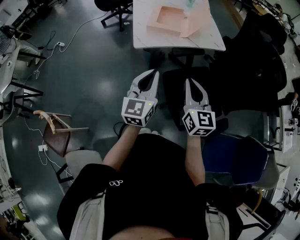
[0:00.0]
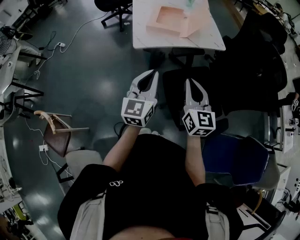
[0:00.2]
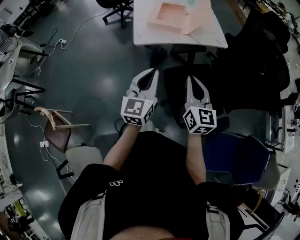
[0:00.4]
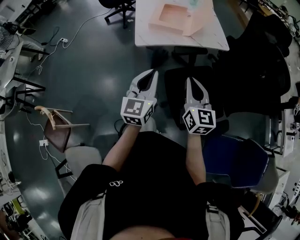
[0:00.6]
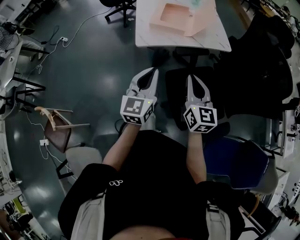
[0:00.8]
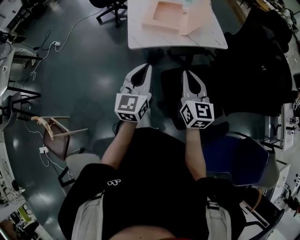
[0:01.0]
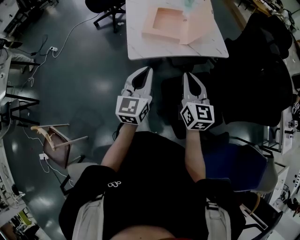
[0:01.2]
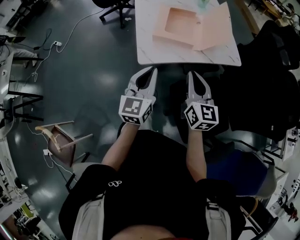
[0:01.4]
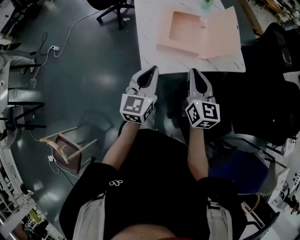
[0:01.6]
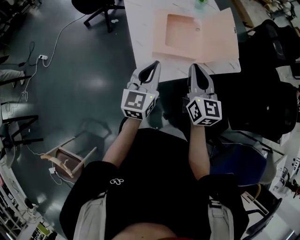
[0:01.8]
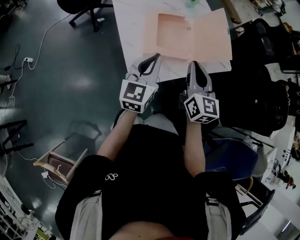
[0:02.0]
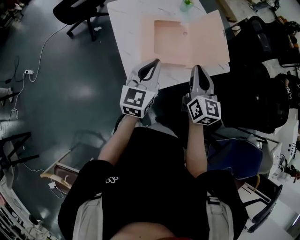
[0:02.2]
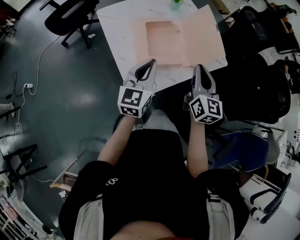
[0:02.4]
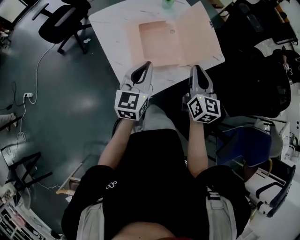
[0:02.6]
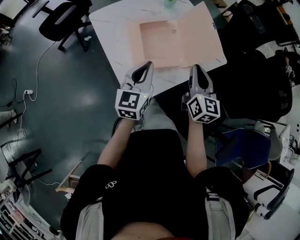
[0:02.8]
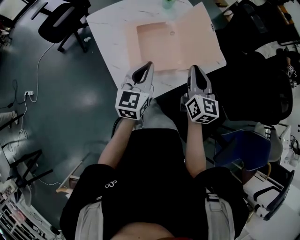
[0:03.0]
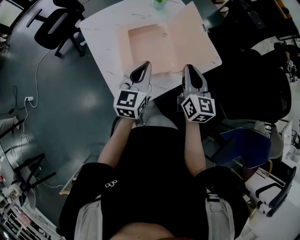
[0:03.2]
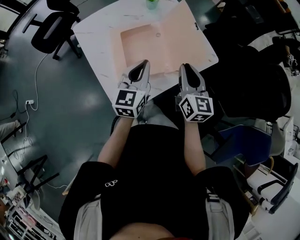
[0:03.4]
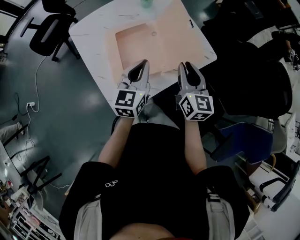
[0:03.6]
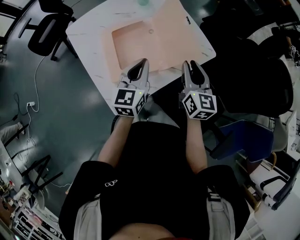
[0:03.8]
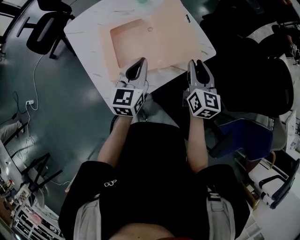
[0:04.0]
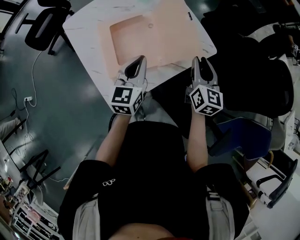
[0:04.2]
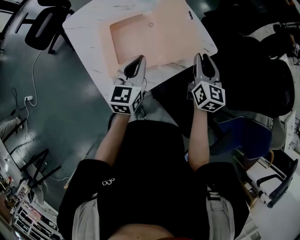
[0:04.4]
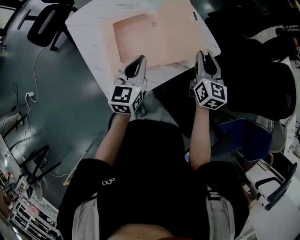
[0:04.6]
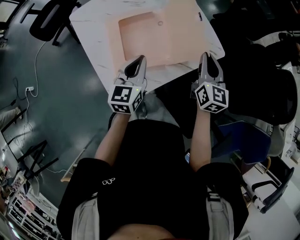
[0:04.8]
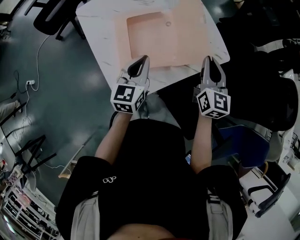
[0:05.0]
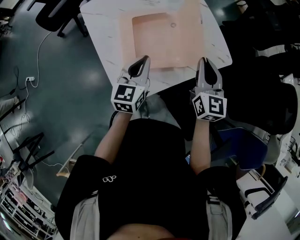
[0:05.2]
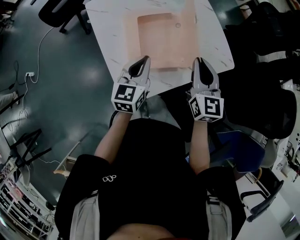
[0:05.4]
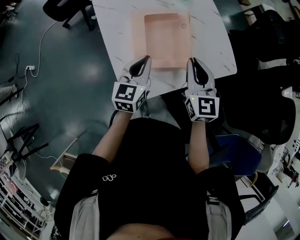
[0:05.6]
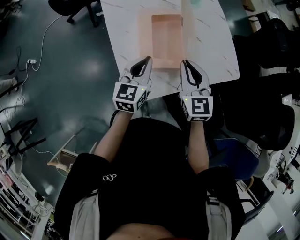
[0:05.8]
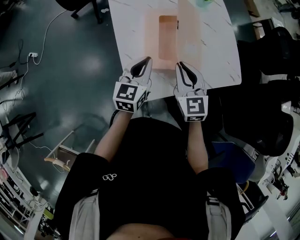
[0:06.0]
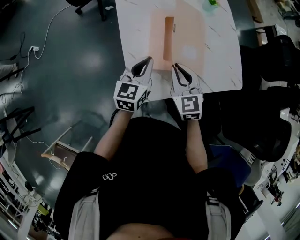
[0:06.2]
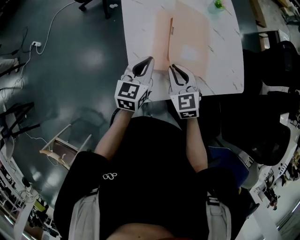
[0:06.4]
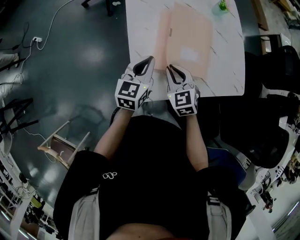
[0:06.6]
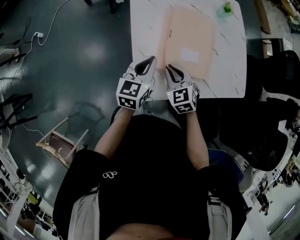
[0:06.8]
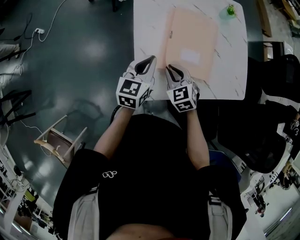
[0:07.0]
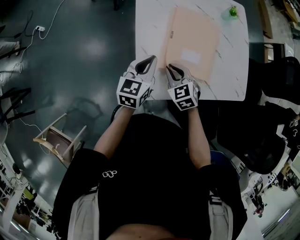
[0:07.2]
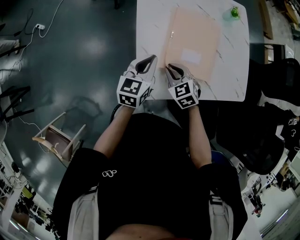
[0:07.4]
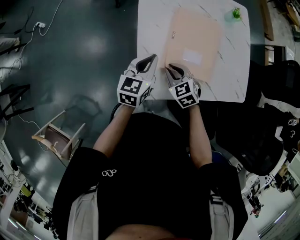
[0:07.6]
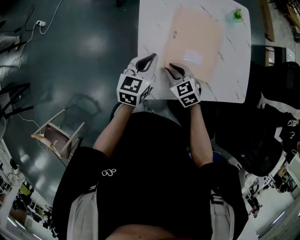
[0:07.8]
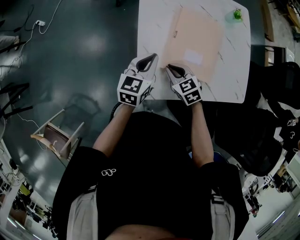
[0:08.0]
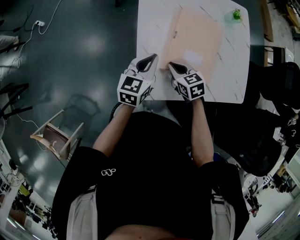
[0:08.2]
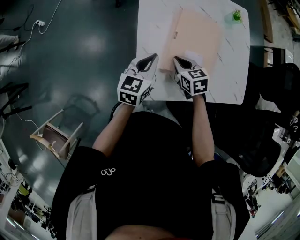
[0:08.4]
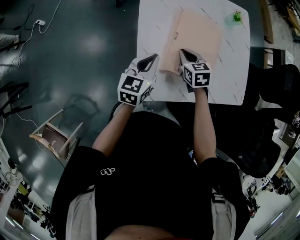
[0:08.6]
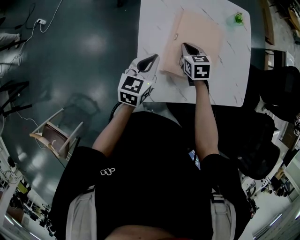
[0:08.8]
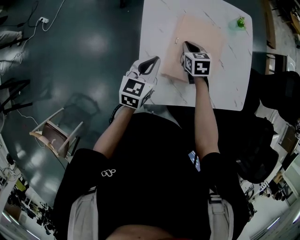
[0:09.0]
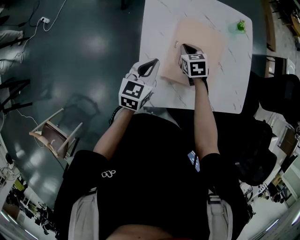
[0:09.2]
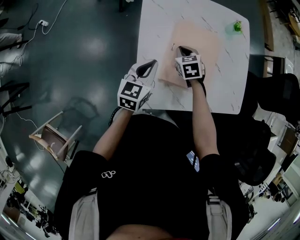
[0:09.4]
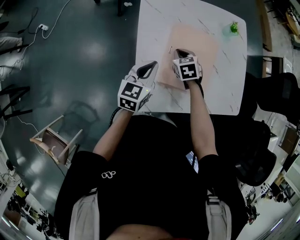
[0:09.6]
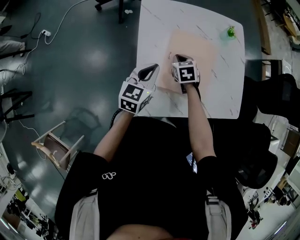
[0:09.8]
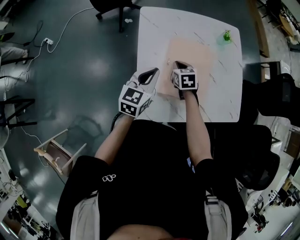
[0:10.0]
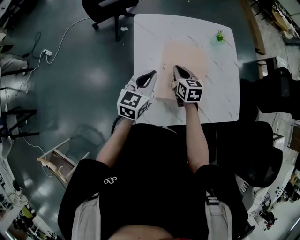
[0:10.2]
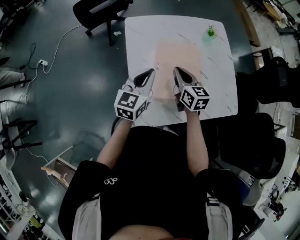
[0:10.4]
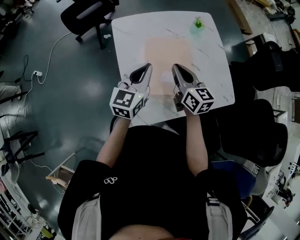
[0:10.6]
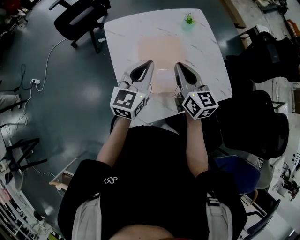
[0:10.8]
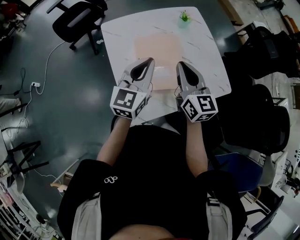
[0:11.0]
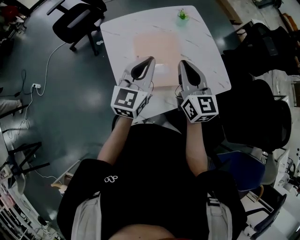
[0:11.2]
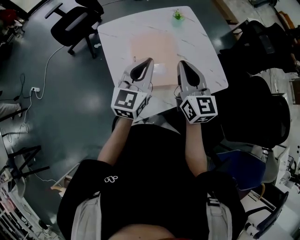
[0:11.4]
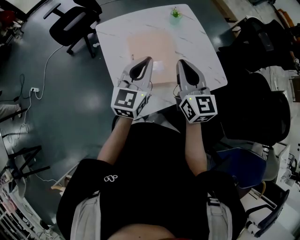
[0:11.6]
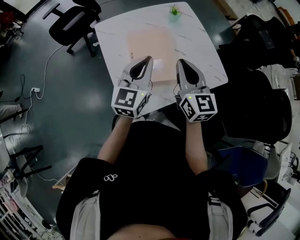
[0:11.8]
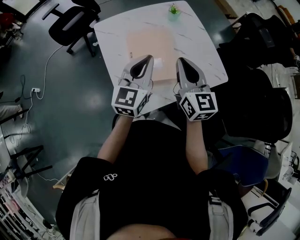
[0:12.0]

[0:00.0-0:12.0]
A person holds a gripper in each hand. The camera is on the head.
0.0 to 1.6 s: Both grippers move forward, about 25 cm.
1.6 to 3.0 s: The two grippers go approximately 15 cm forward. The right gripper rotates some 20 degrees.
3.0 to 4.4 s: The left gripper heads to the right and forward, covering about 10 cm. The right gripper moves to the right and forward, some 15 cm.
4.4 to 6.0 s: The right gripper shifts approximately 25 cm to the left, and changes its angle by approximately 40 degrees, while the left gripper heads to the left, covering approximately 15 cm.
6.0 to 7.6 s: The left gripper heads to the left, covering some 5 cm, while the right gripper heads downward and to the left, covering some 15 cm, and swivels some 40 degrees.
7.6 to 9.0 s: The right gripper goes about 15 cm forward and to the right, and changes its angle by approximately 30 degrees.
9.0 to 10.4 s: Both grippers move upward, approximately 10 cm. The right gripper turns by approximately 30 degrees.
10.4 to 12.0 s: The right gripper goes some 20 cm upward, to the right and backward, and turns by roughly 30 degrees, while the left gripper shifts some 15 cm to the right and upward.

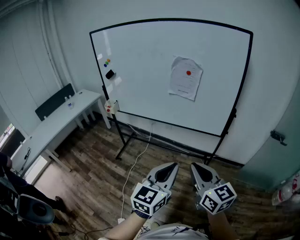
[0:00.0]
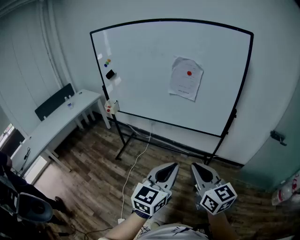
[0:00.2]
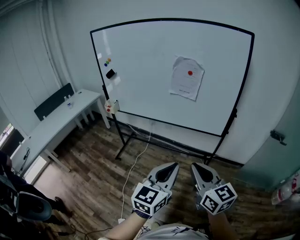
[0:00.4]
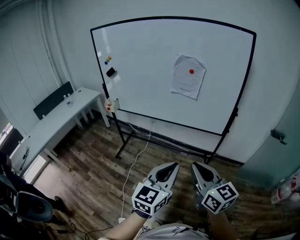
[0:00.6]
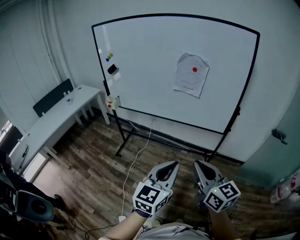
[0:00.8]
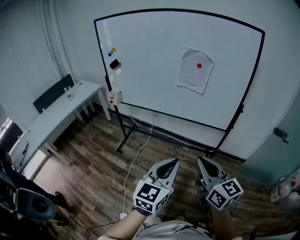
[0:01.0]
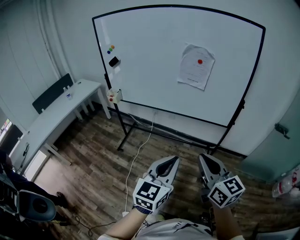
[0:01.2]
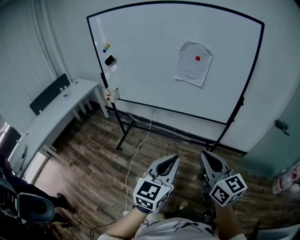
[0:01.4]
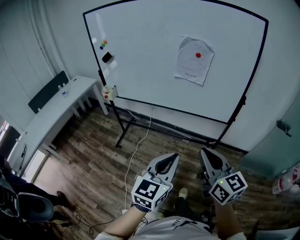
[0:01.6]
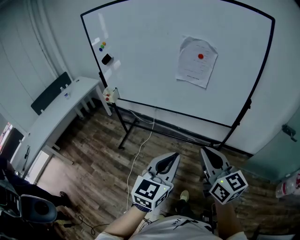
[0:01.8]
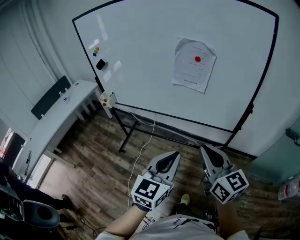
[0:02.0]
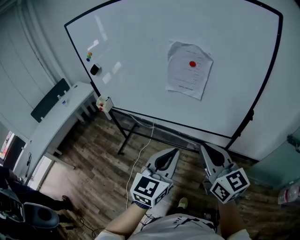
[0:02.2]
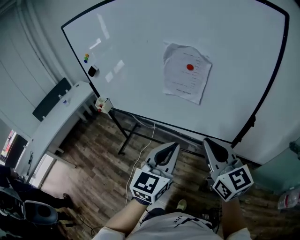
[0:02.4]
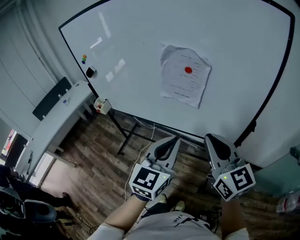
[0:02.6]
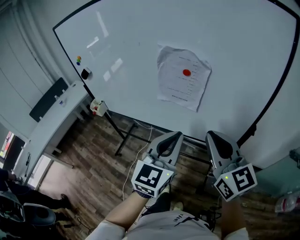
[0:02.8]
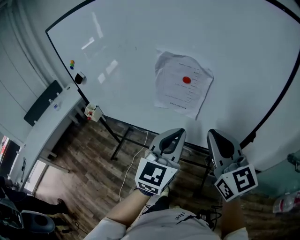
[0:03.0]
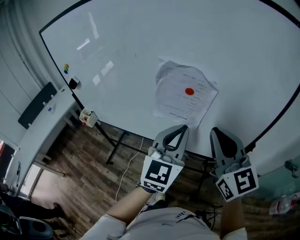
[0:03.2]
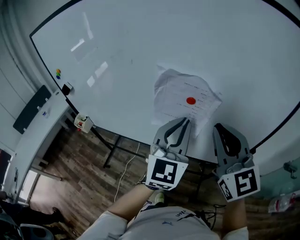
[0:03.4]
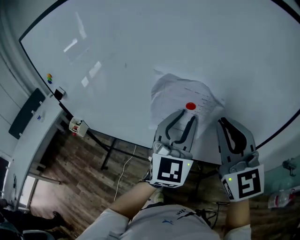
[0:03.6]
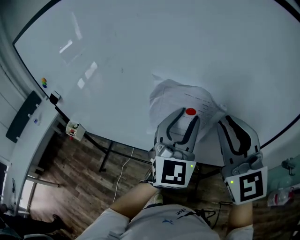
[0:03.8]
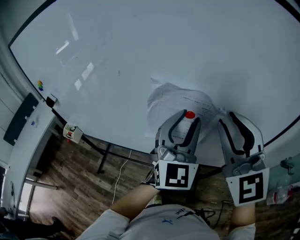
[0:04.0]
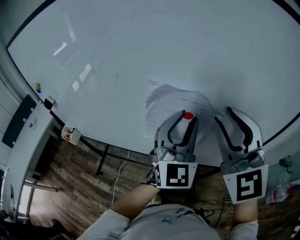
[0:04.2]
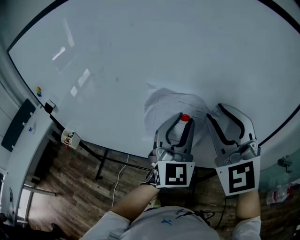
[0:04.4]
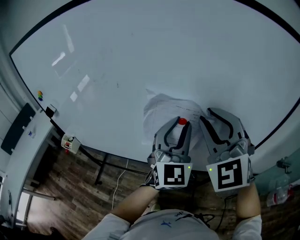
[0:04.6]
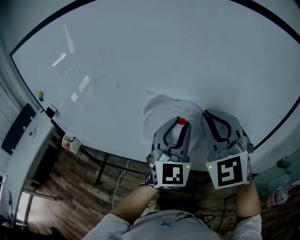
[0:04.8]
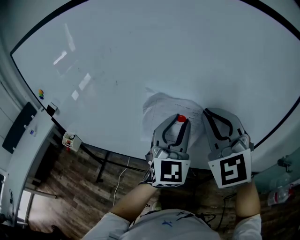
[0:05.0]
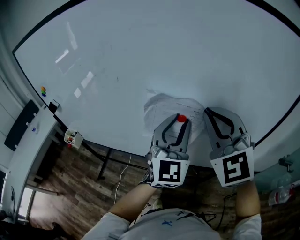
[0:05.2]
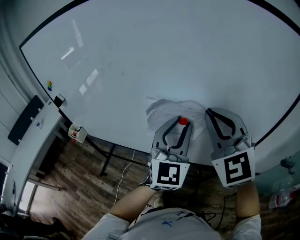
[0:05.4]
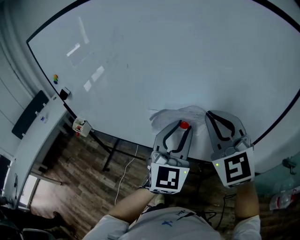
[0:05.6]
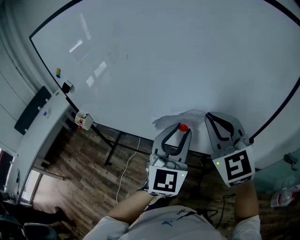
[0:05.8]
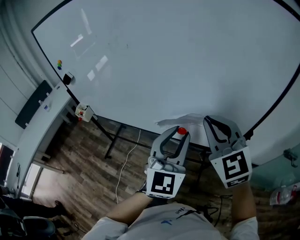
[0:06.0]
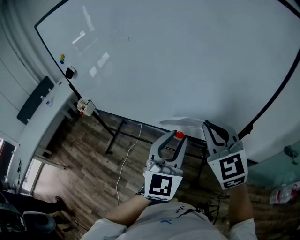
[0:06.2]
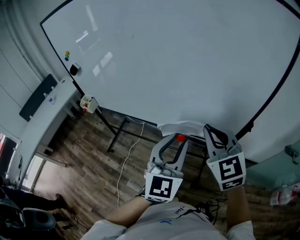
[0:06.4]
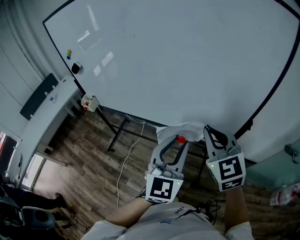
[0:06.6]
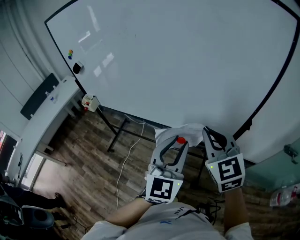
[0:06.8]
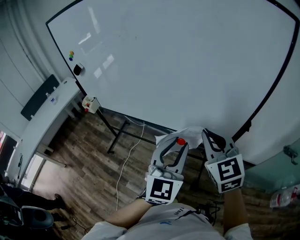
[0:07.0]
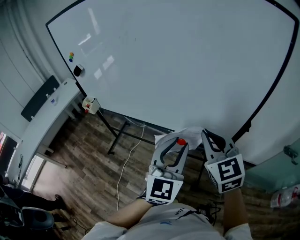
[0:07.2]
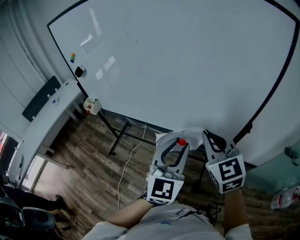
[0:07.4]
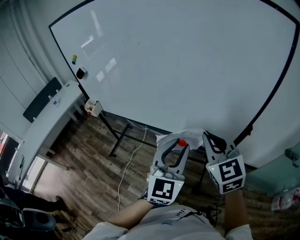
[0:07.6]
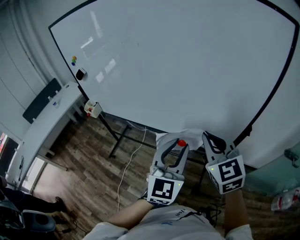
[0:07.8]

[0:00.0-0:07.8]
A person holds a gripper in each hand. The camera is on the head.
0.0 to 1.6 s: The left gripper goes roughly 5 cm to the left; the right gripper ends up about 5 cm from where it was.
1.6 to 3.2 s: Both grippers travel together forward, some 40 cm. The right gripper changes its angle by roughly 20 degrees.
3.2 to 4.6 s: The left gripper is displaced forward by about 10 cm, and opens up. Meanwhile the right gripper travels forward and upward by some 10 cm, rolls counterclockwise, seen from behind, by approximately 40 degrees, and opens its fingers.
4.6 to 6.2 s: The left gripper is displaced backward by approximately 20 cm, while the right gripper moves backward and downward, approximately 15 cm, rotates about 30 degrees, and closes.
6.2 to 7.8 s: There are only small adjustments of the grippers.

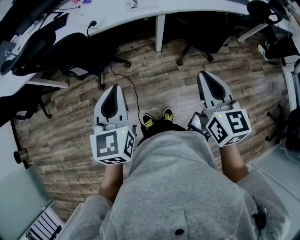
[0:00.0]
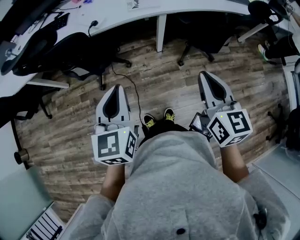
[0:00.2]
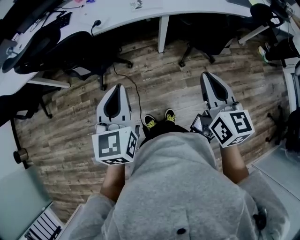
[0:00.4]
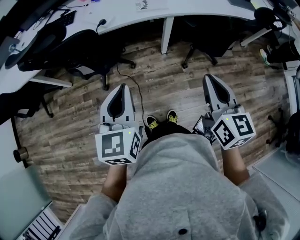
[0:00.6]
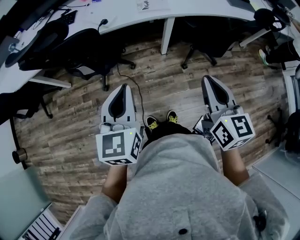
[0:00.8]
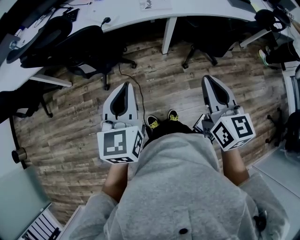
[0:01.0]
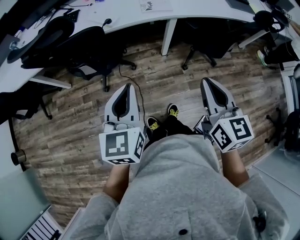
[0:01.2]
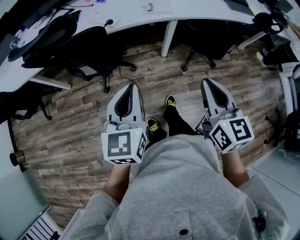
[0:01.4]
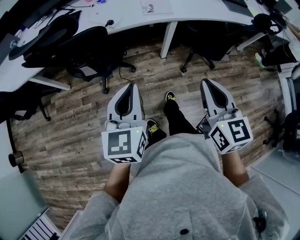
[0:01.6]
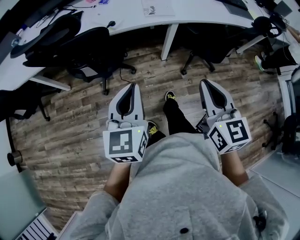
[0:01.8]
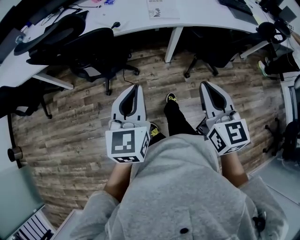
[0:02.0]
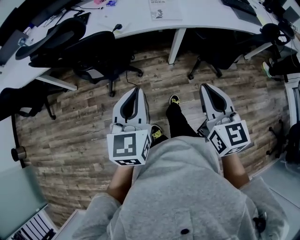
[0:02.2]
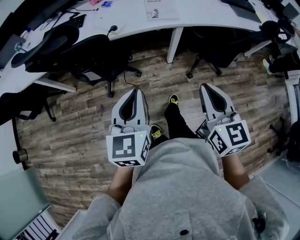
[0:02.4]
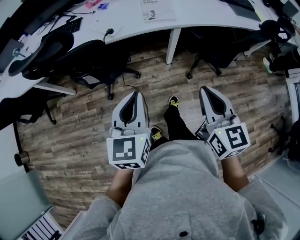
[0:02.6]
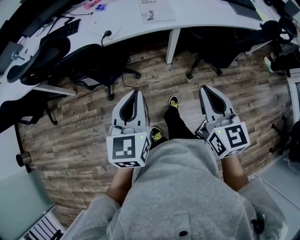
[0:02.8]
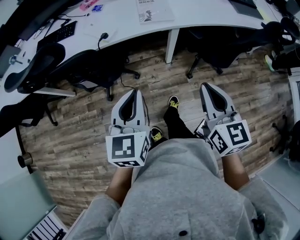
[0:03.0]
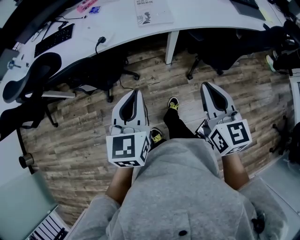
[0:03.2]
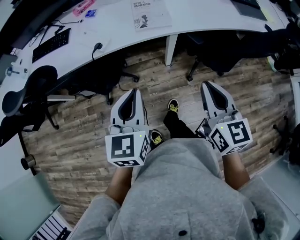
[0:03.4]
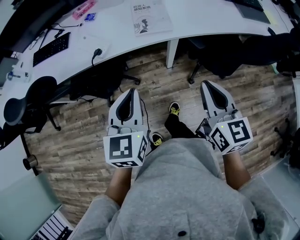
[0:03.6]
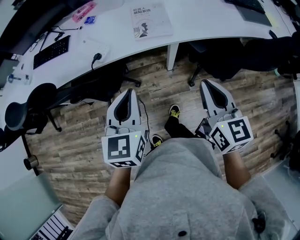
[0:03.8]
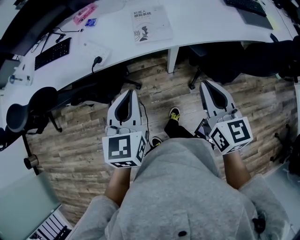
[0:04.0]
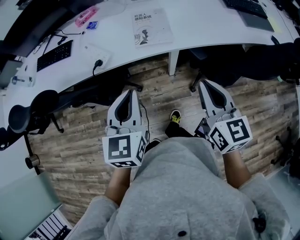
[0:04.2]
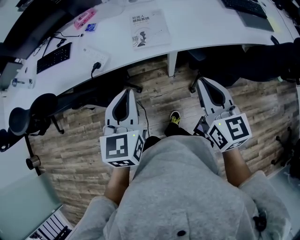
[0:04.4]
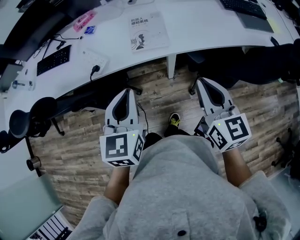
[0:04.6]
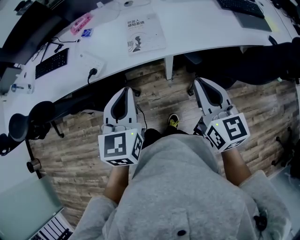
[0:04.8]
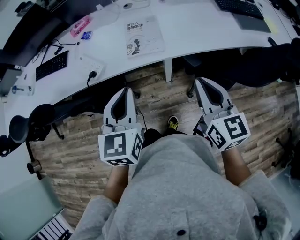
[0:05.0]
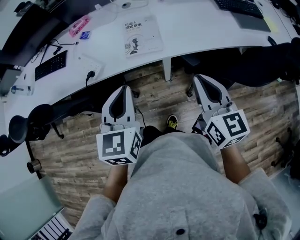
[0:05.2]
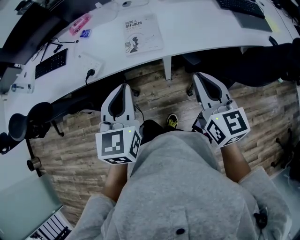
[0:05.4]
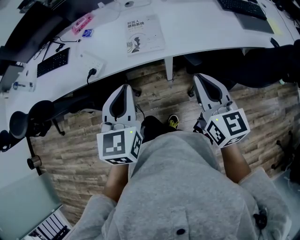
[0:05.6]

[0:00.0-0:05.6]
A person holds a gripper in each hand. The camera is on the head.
0.0 to 1.4 s: The right gripper travels to the left by some 10 cm. Meanwhile the left gripper goes approximately 5 cm to the left.
1.4 to 2.8 s: The two grippers go roughly 5 cm forward.
2.8 to 4.2 s: The right gripper heads forward and to the right, covering some 20 cm. Meanwhile the left gripper goes some 20 cm forward.
4.2 to 5.6 s: The right gripper ends up some 5 cm from where it was. The left gripper shifts by roughly 5 cm.
